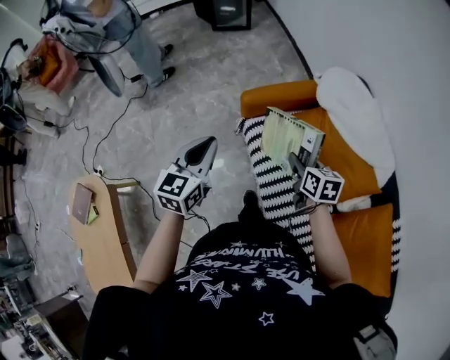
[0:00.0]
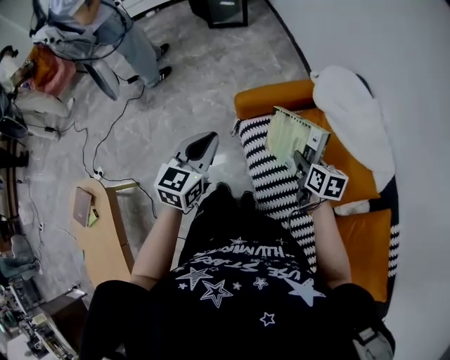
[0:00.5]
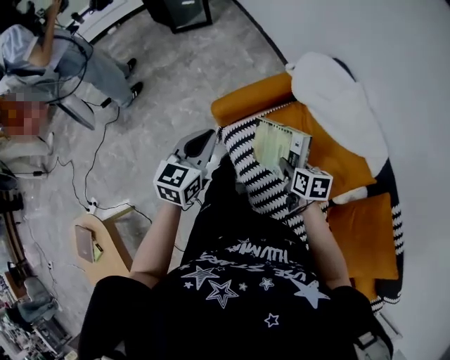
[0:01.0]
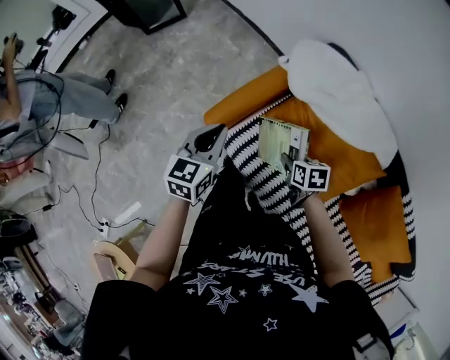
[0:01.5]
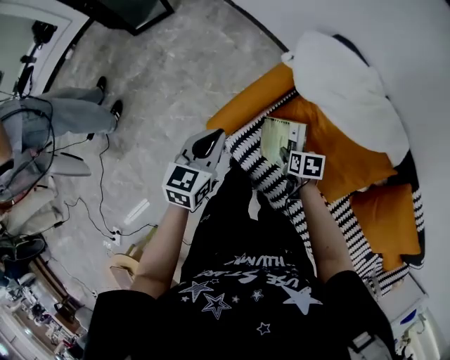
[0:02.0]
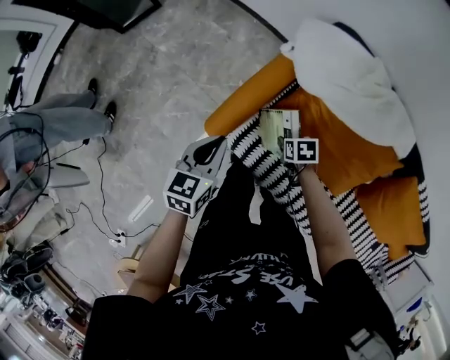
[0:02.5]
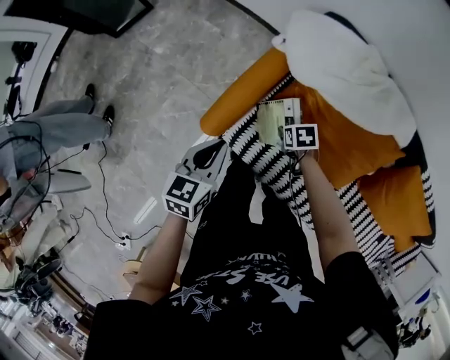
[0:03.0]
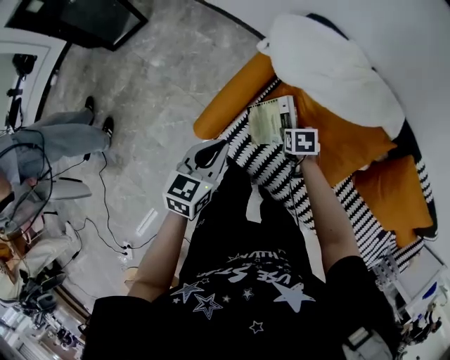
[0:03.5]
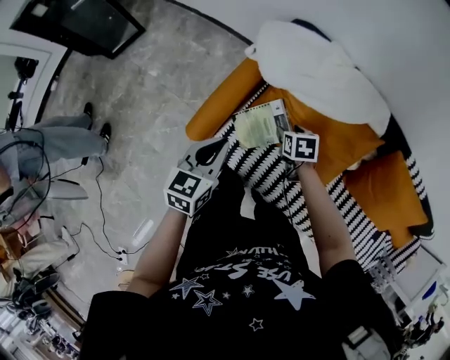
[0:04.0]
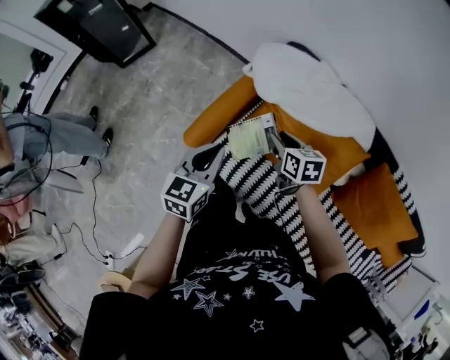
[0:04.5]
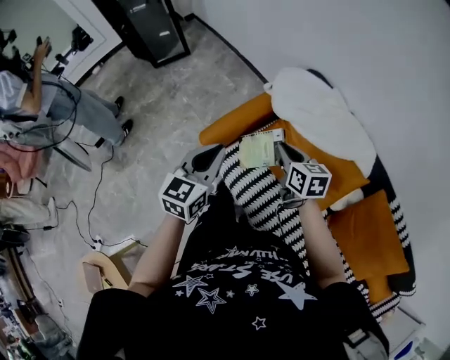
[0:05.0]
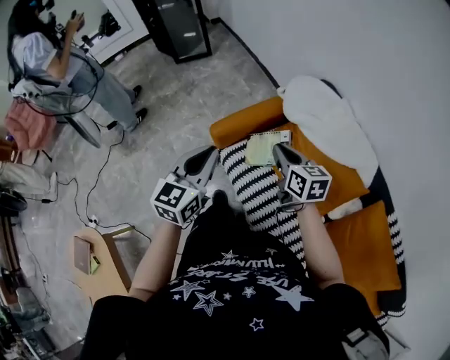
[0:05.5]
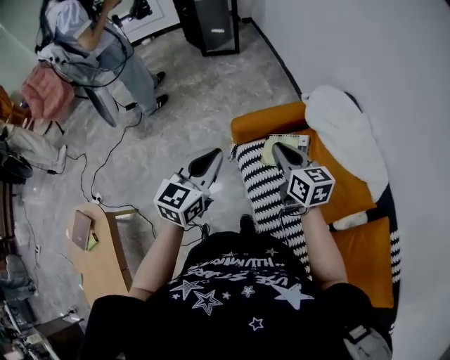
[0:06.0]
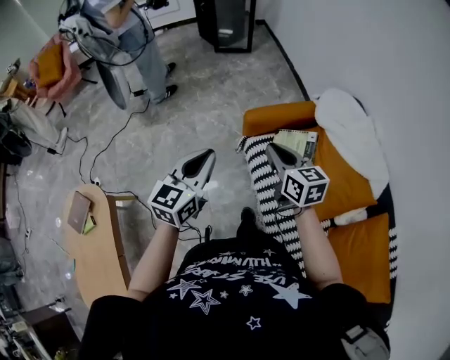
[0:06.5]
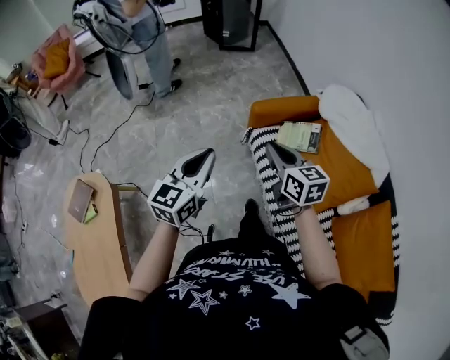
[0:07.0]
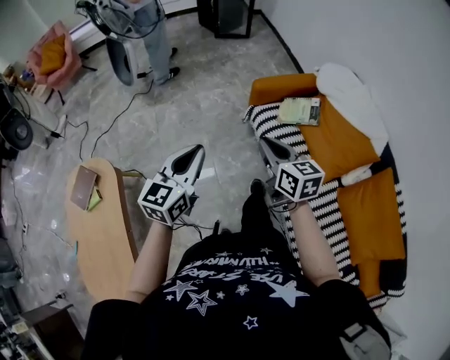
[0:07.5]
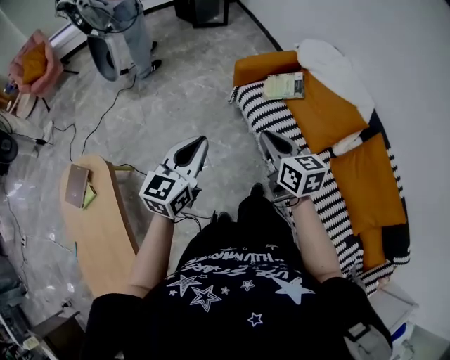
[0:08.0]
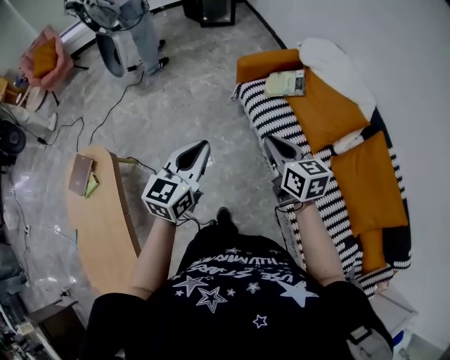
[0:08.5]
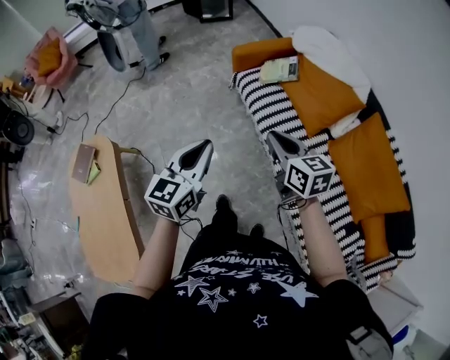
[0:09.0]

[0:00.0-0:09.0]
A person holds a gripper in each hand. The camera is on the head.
0:00.0 to 0:02.0: The left gripper is displaced forward and downward by about 35 cm, and swivels approximately 30 degrees; the right gripper travels downward and forward by roughly 30 cm, and swivels approximately 40 degrees.
0:02.0 to 0:04.5: The left gripper moves to the right, backward and upward, about 15 cm; the right gripper moves upward, roughly 15 cm, and rotates about 30 degrees.
0:04.5 to 0:07.0: The left gripper changes place by about 40 cm, and changes its angle by approximately 40 degrees. Meanwhile the right gripper moves roughly 40 cm, turns by some 40 degrees, and closes.
0:07.0 to 0:09.0: The grippers both shift backward by some 35 cm.

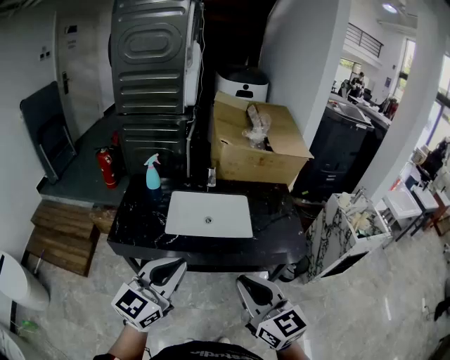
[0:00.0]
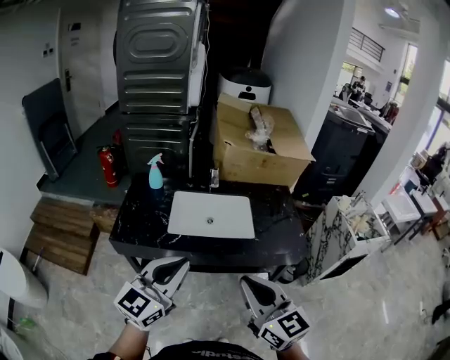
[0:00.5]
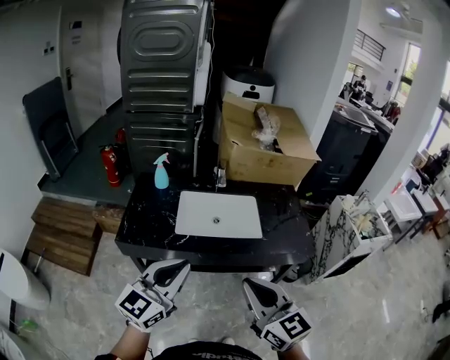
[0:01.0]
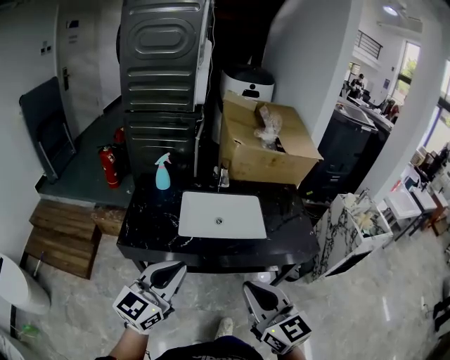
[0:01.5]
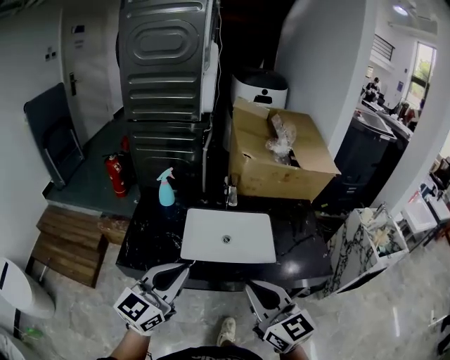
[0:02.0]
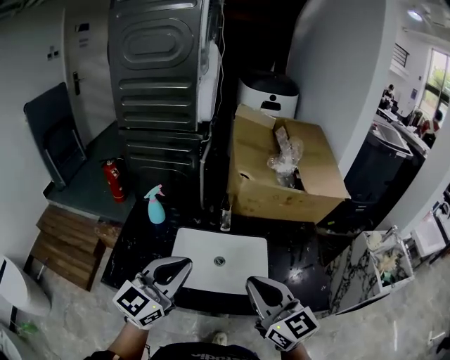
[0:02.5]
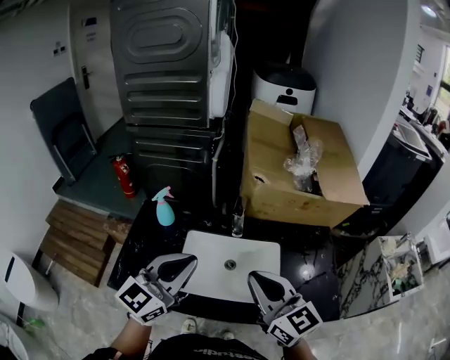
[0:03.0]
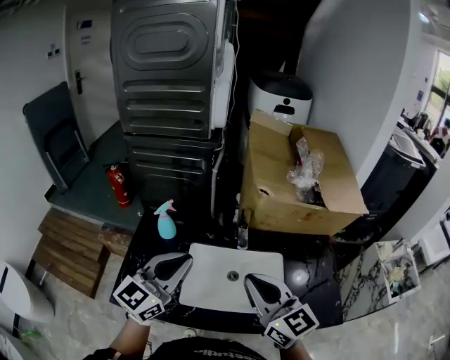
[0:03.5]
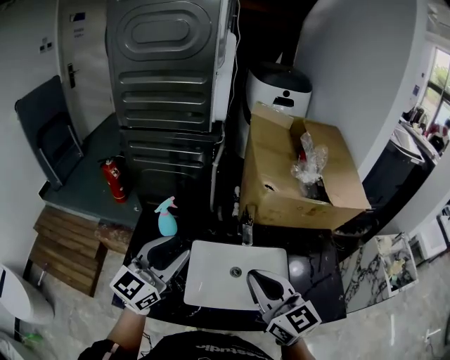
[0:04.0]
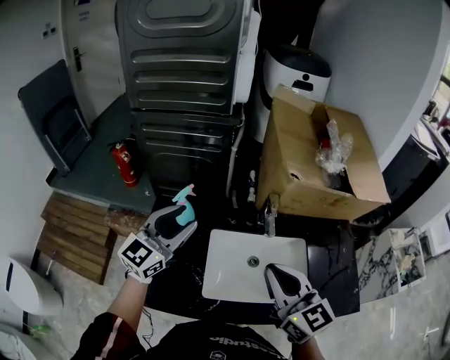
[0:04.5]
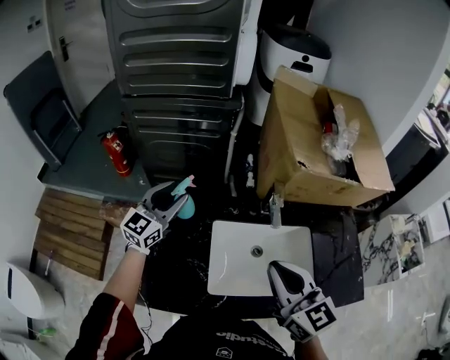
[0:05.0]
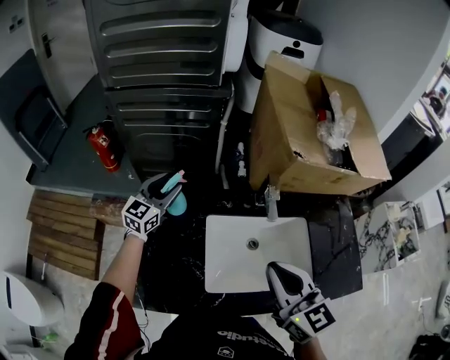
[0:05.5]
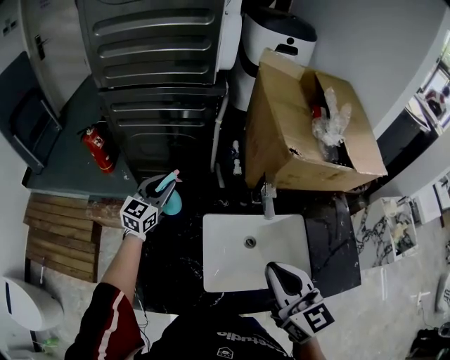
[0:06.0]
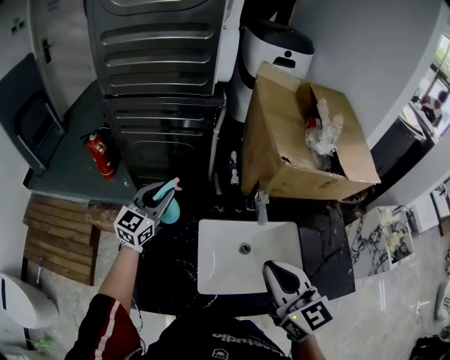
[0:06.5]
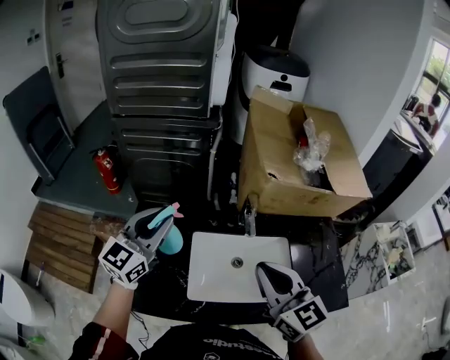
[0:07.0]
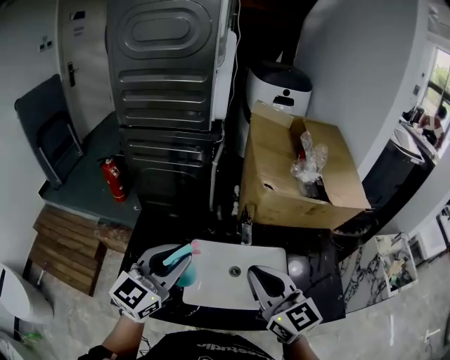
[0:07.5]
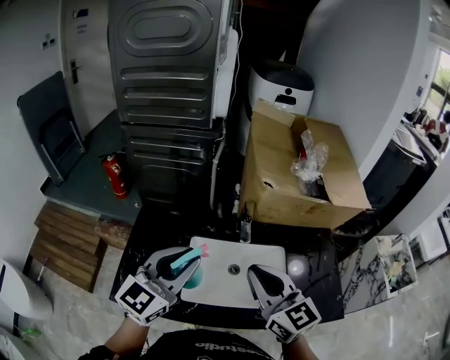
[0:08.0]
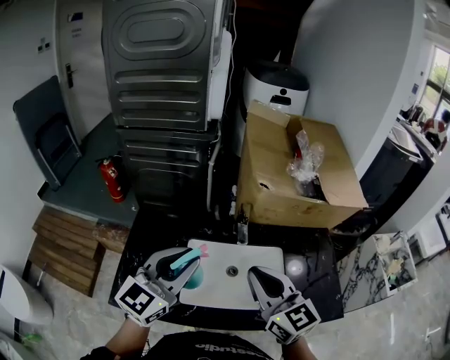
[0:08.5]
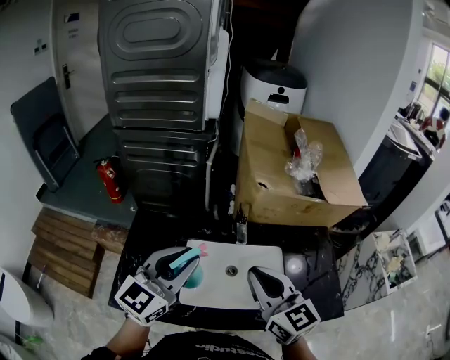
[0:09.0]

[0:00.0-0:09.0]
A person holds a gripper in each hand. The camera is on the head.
0:00.0 to 0:02.0: The two grippers go about 15 cm forward and to the left.
0:02.0 to 0:04.5: Both grippers move forward, about 30 cm. The left gripper opens its fingers.
0:04.5 to 0:07.0: The left gripper reaches about 15 cm downward, then returns.
0:07.0 to 0:09.0: The left gripper shifts some 15 cm to the right and backward.

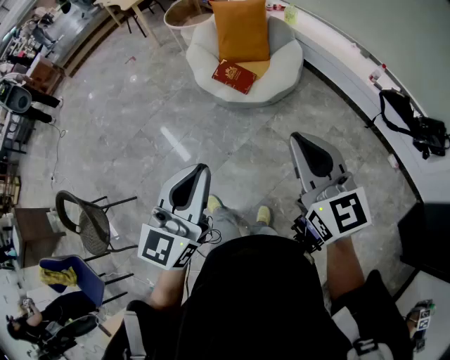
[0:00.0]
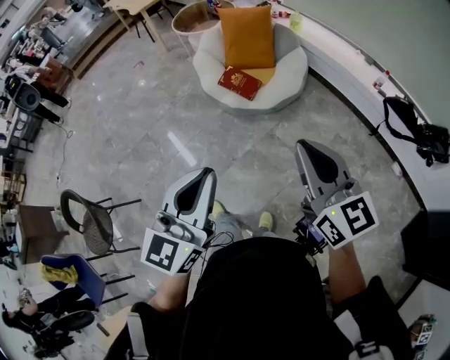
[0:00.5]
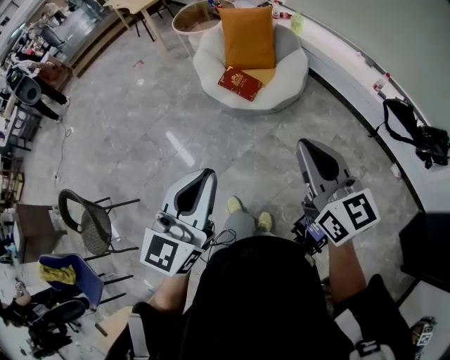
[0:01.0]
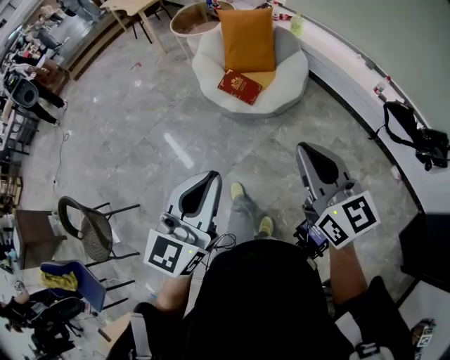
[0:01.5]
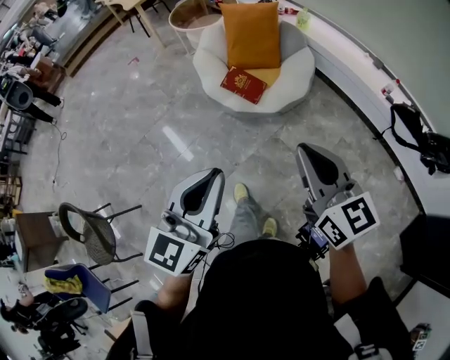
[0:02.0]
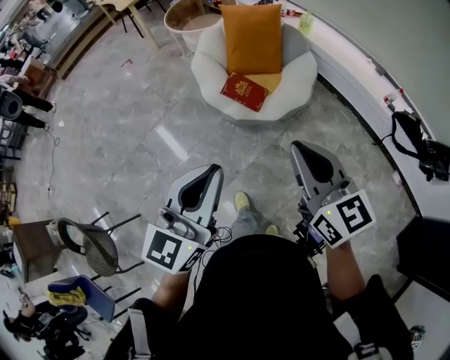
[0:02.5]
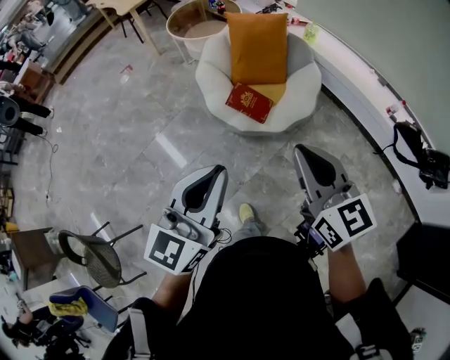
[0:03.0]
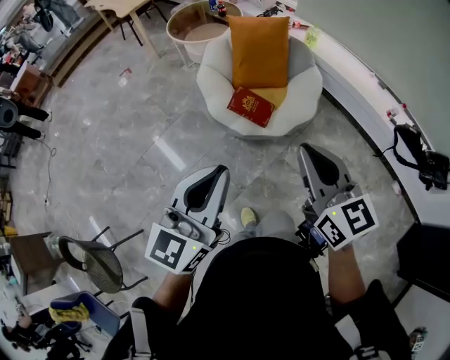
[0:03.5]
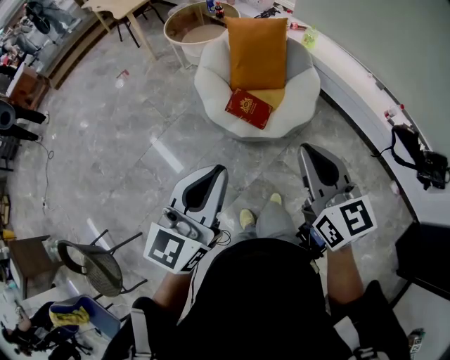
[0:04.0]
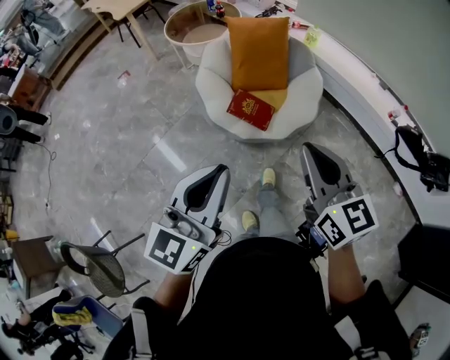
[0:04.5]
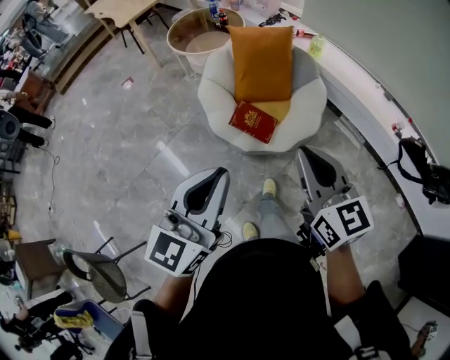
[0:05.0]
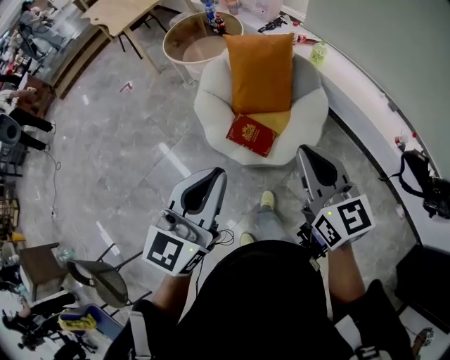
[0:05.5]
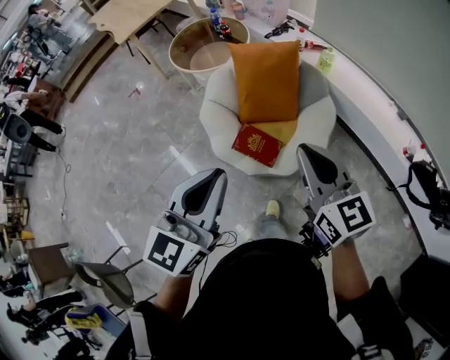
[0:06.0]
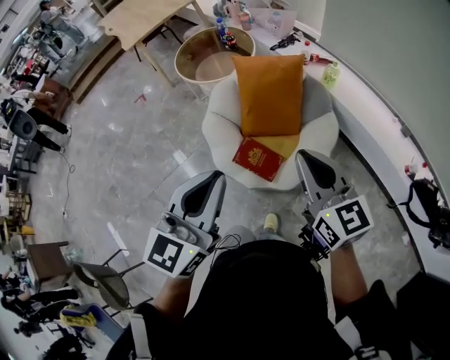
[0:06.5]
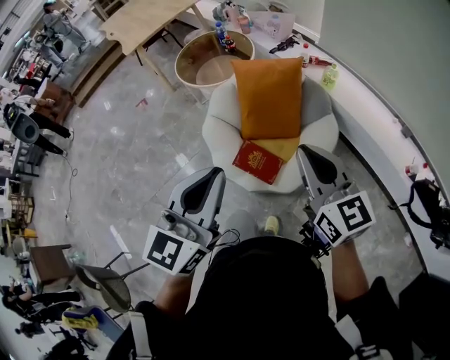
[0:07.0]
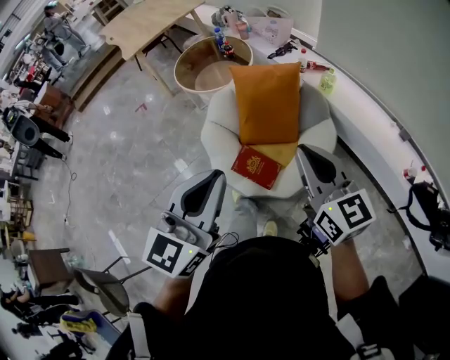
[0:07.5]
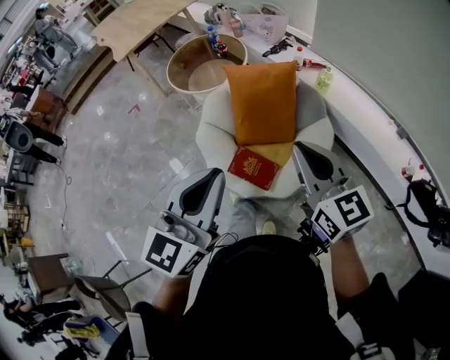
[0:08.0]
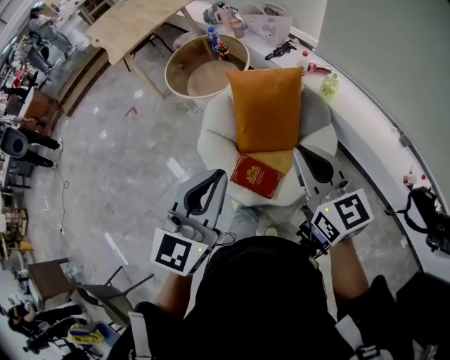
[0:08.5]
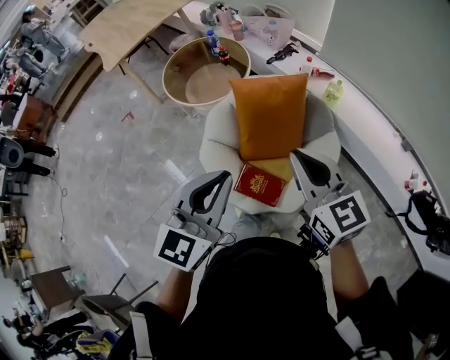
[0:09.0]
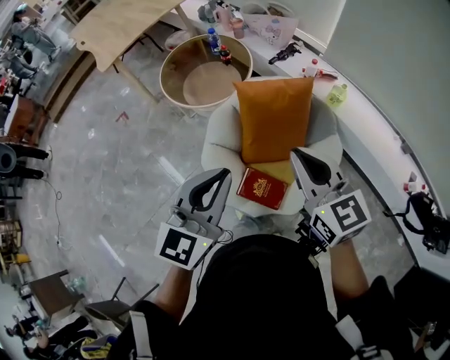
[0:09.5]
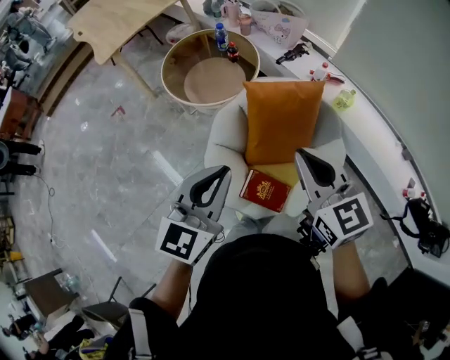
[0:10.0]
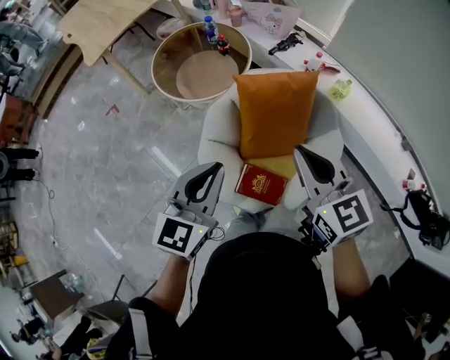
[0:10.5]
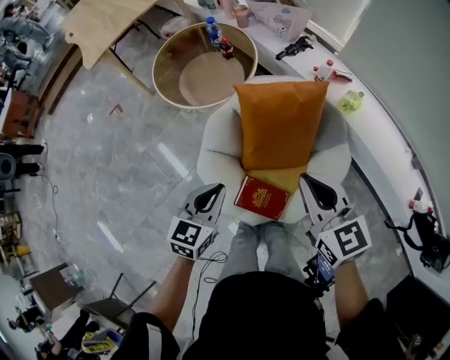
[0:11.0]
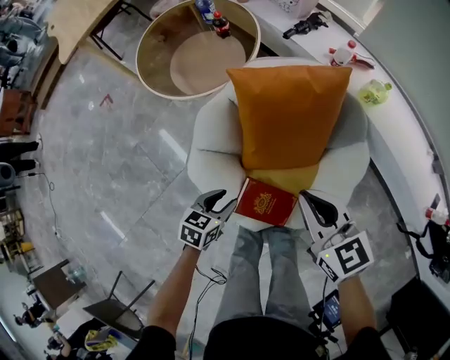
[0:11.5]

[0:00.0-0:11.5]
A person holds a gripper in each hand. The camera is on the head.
0:00.0 to 0:02.0: The two grippers go roughly 10 cm forward.
0:02.0 to 0:04.0: Both grippers move forward and to the left, approximately 20 cm.
0:04.0 to 0:06.0: Both grippers travel together forward, about 25 cm.
0:06.0 to 0:07.5: The left gripper moves about 5 cm. The right gripper shifts about 5 cm forward.
0:07.5 to 0:09.5: Both grippers move forward and to the left, roughly 25 cm.
0:09.5 to 0:11.5: The right gripper moves downward, about 25 cm, while the left gripper moves downward, some 50 cm, tilts its fingers approximately 40 degrees downward, and opens its fingers.
